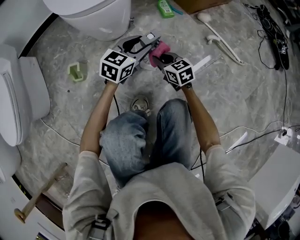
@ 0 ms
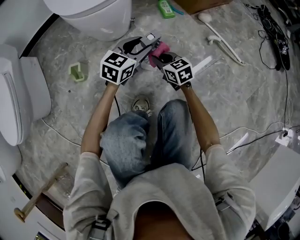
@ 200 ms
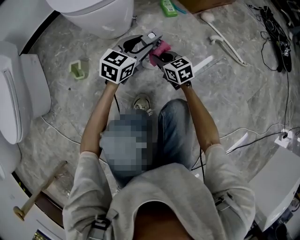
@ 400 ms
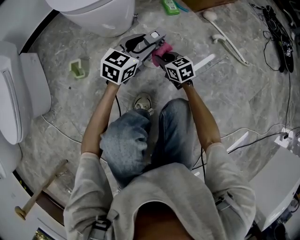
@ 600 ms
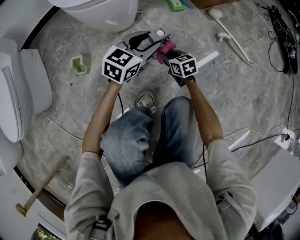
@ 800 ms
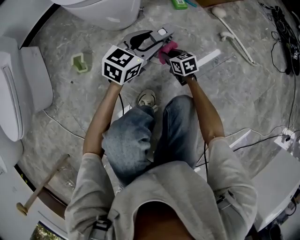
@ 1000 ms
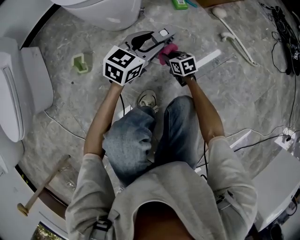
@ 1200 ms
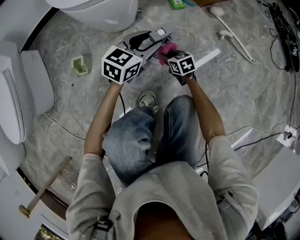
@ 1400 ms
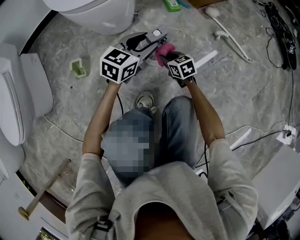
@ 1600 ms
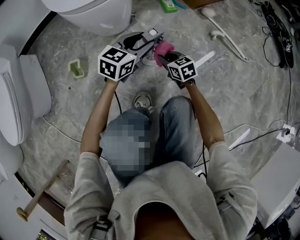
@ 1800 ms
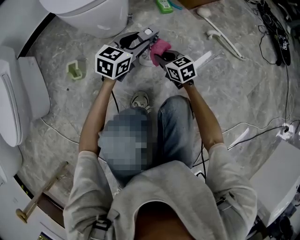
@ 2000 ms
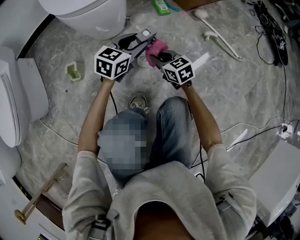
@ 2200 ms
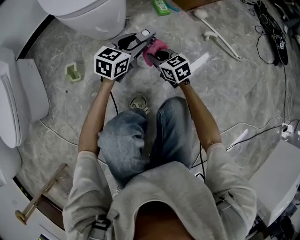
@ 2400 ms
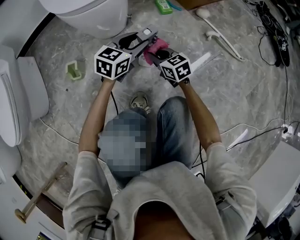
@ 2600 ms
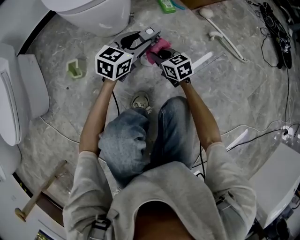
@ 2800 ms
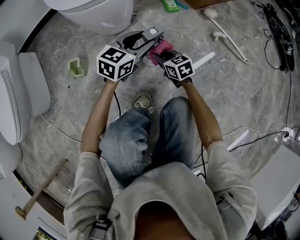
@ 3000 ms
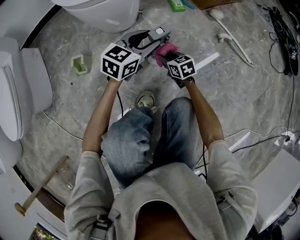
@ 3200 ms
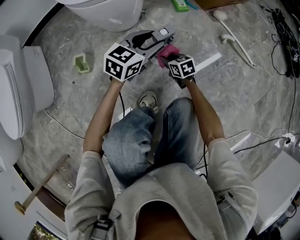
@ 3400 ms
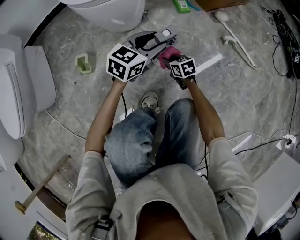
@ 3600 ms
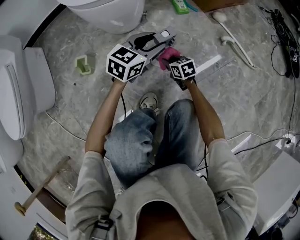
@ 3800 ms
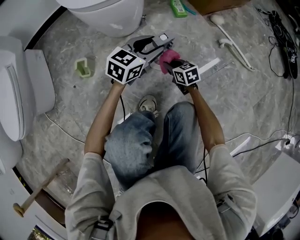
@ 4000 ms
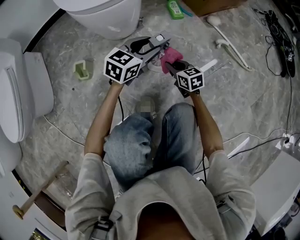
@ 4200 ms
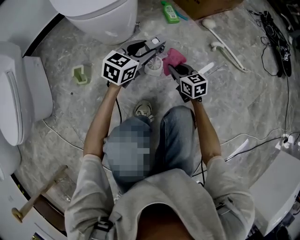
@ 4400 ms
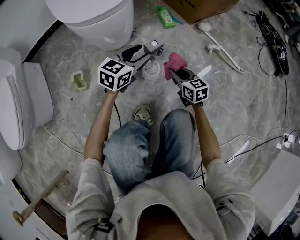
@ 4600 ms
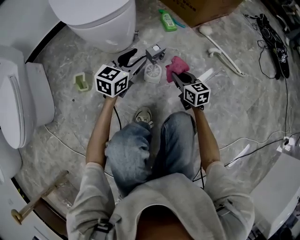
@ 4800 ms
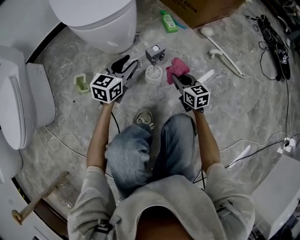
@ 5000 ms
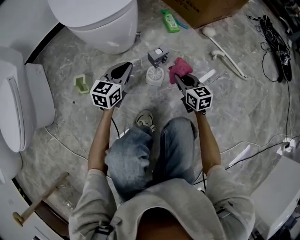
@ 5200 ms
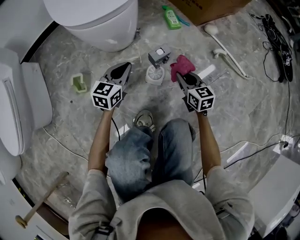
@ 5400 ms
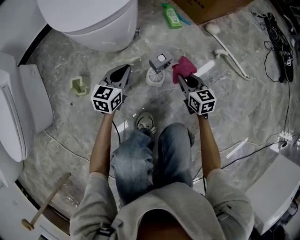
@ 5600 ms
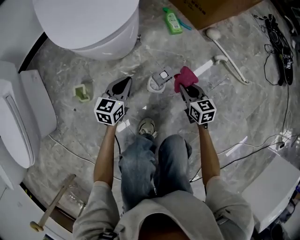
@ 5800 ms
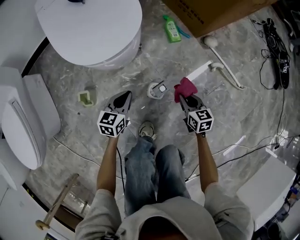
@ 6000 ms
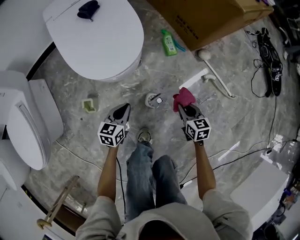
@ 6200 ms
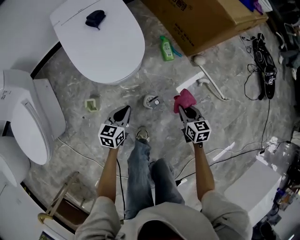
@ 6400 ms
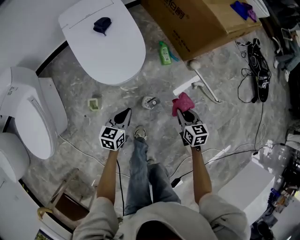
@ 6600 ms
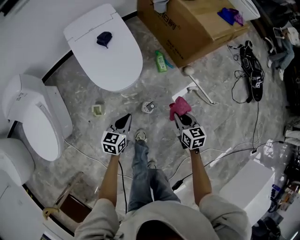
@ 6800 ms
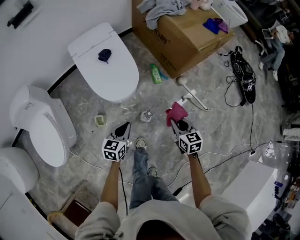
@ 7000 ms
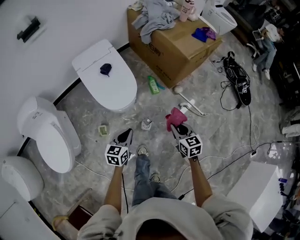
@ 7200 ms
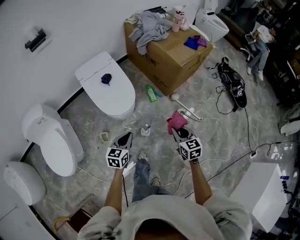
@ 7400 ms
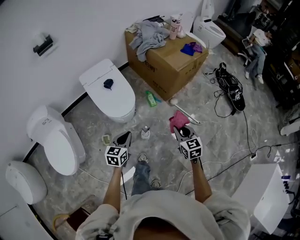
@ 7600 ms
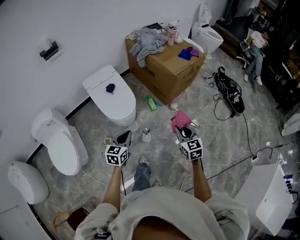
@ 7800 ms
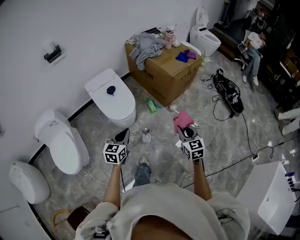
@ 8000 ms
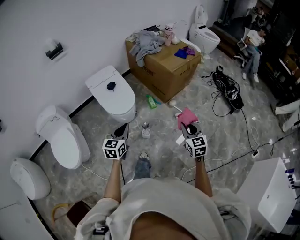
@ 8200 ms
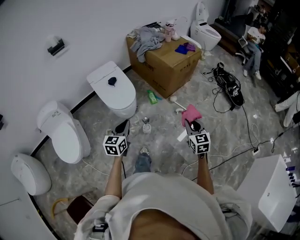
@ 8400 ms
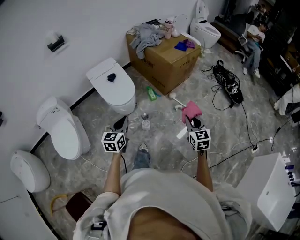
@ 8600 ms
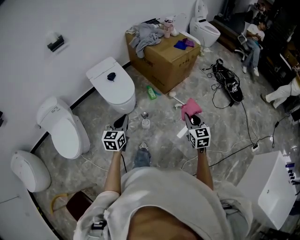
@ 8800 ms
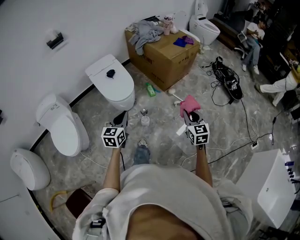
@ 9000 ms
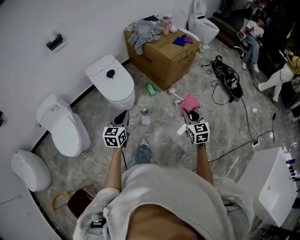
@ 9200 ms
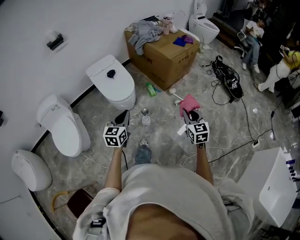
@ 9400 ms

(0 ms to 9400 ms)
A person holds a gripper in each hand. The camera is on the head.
0 ms - 1600 ms: The right gripper travels downward by about 10 cm.
1600 ms - 3200 ms: The right gripper goes upward and returns, about 10 cm each way.
3200 ms - 4800 ms: The right gripper travels to the right and upward by some 10 cm.
4800 ms - 6200 ms: The right gripper shifts about 10 cm upward, while the left gripper travels to the left by roughly 10 cm, reaches roughly 10 cm downward, then returns, turns by roughly 20 degrees, and closes.
6200 ms - 7800 ms: The two grippers go about 50 cm upward. The right gripper turns by some 30 degrees.
7800 ms - 9400 ms: The right gripper travels backward and to the right by some 15 cm, while the left gripper shifts about 10 cm backward and upward.

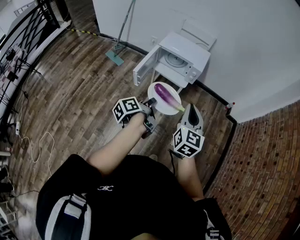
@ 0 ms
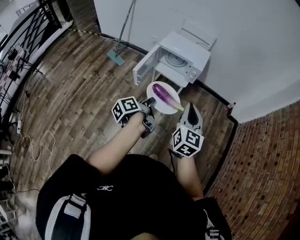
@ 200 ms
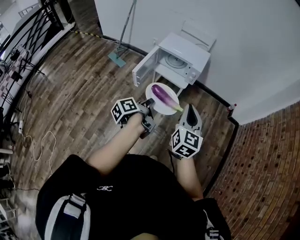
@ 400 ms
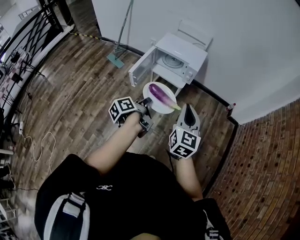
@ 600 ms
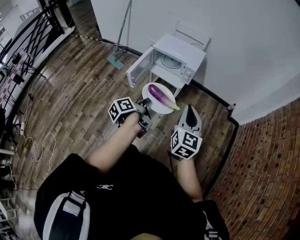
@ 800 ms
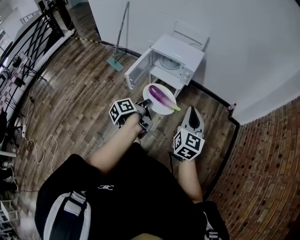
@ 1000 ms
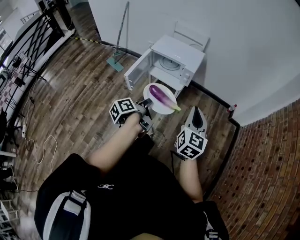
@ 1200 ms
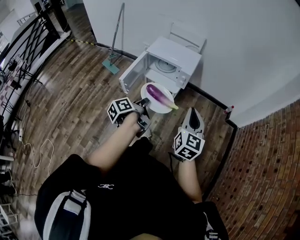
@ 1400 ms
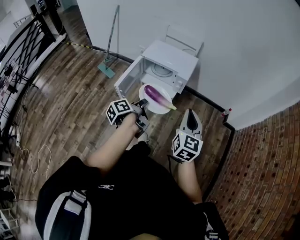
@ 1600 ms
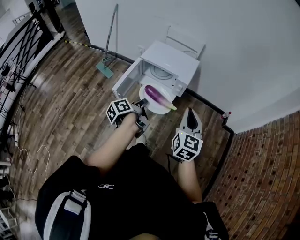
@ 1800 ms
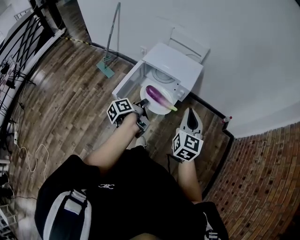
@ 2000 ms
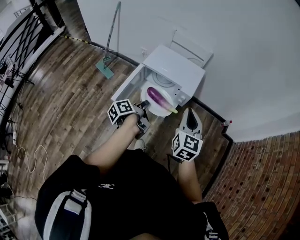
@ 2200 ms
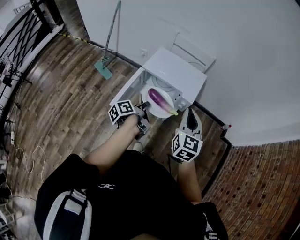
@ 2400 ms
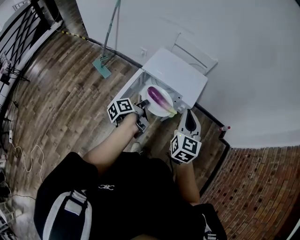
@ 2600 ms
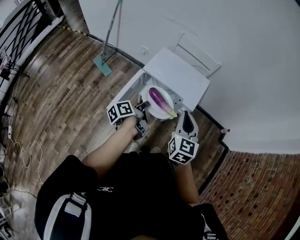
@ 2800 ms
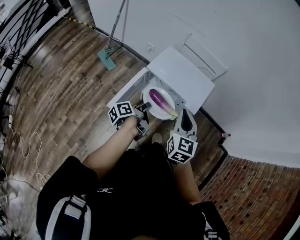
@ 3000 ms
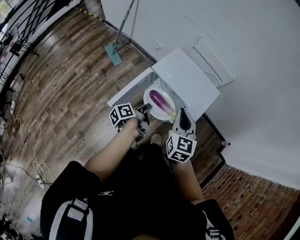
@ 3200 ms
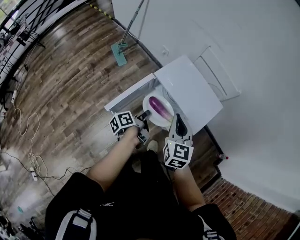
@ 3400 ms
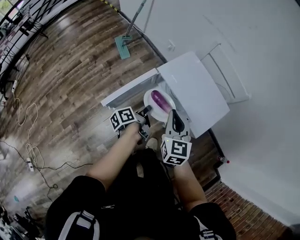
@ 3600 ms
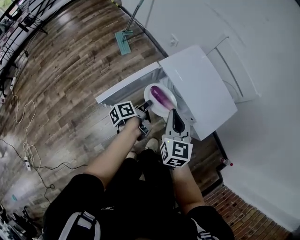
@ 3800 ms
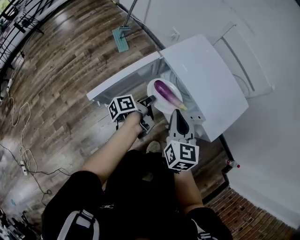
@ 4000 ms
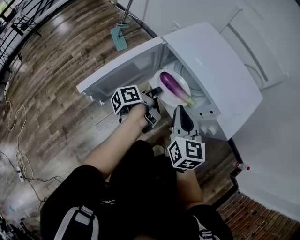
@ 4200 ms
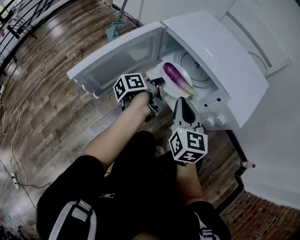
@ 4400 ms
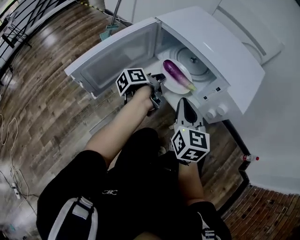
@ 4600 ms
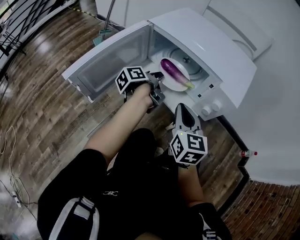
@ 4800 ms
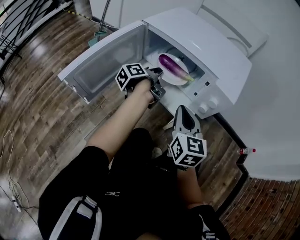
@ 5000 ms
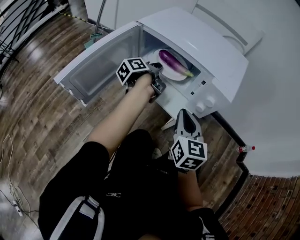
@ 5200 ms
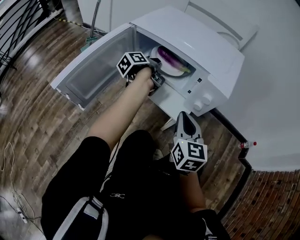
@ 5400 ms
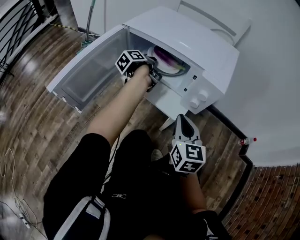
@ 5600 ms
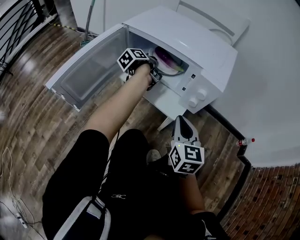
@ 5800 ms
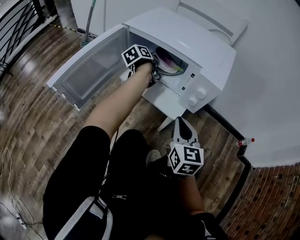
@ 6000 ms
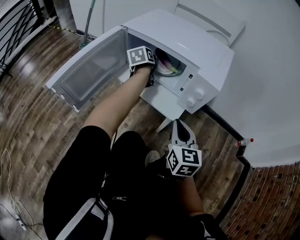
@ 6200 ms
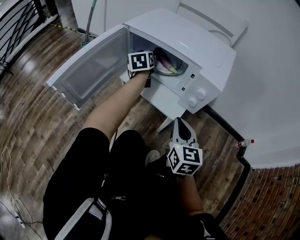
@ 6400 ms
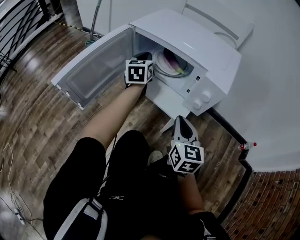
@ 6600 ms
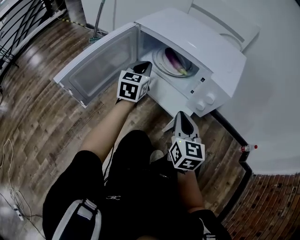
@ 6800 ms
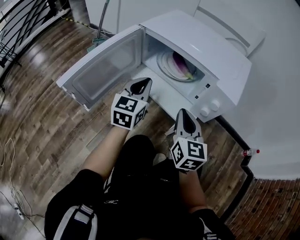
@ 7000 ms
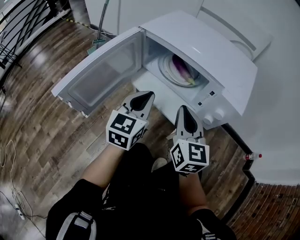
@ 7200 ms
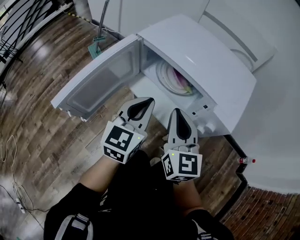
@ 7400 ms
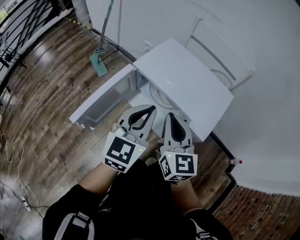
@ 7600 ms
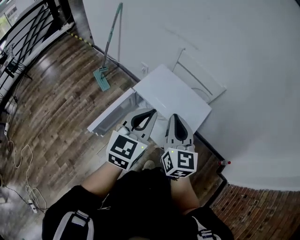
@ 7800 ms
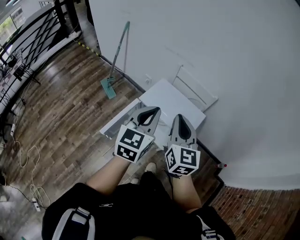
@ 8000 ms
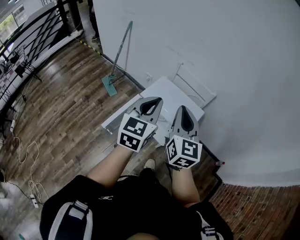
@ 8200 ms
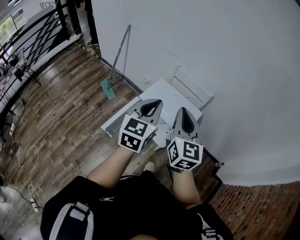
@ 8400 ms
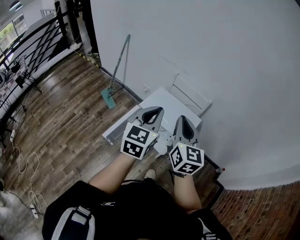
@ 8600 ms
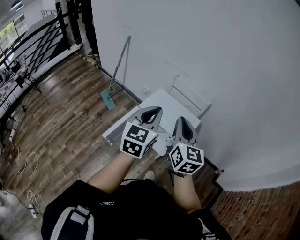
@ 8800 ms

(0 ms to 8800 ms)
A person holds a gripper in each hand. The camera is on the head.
0 ms - 1400 ms: The right gripper travels to the right and forward by approximately 15 cm. Meanwhile the left gripper goes approximately 10 cm forward and to the right.
1400 ms - 3000 ms: The left gripper goes about 30 cm forward, while the right gripper is displaced forward and to the left by approximately 35 cm.
3000 ms - 4400 ms: Both grippers move downward, some 35 cm. The right gripper changes its angle by about 20 degrees.
4400 ms - 5800 ms: The right gripper heads to the right, backward and downward, covering roughly 15 cm, while the left gripper goes approximately 15 cm forward and to the right.
5800 ms - 7400 ms: The left gripper heads backward and upward, covering roughly 20 cm, rotates around the line of its fingers by approximately 70 degrees, clockwise from behind, and opens and closes again. The right gripper heads upward, to the left and forward, covering roughly 15 cm.
7400 ms - 8800 ms: The grippers both shift upward by approximately 50 cm.

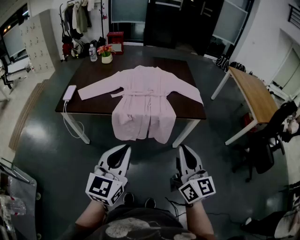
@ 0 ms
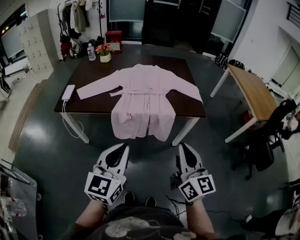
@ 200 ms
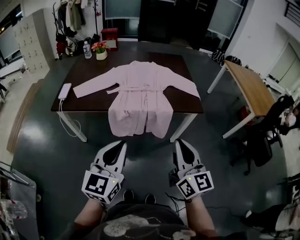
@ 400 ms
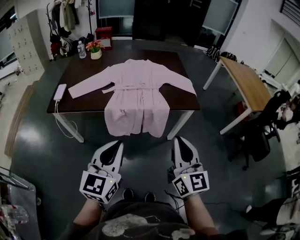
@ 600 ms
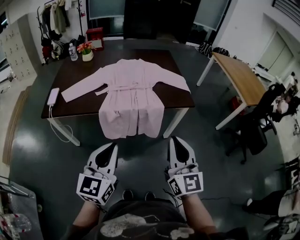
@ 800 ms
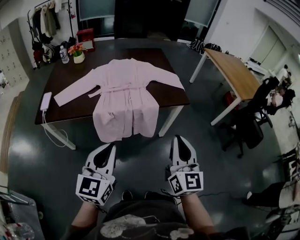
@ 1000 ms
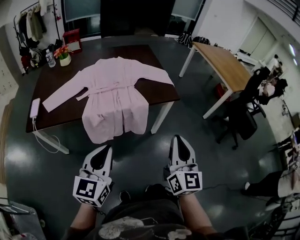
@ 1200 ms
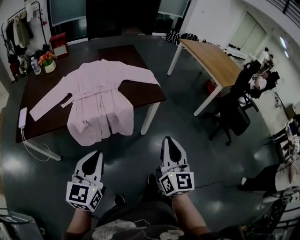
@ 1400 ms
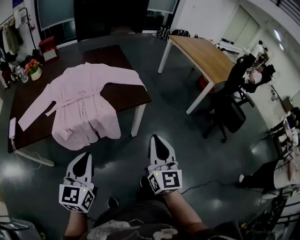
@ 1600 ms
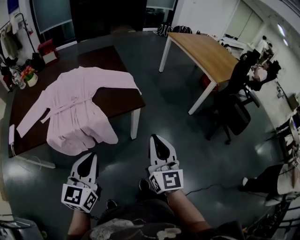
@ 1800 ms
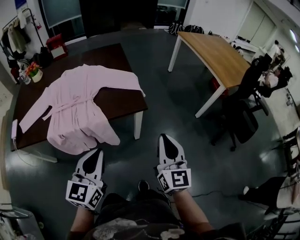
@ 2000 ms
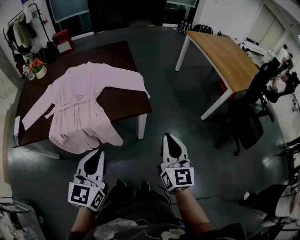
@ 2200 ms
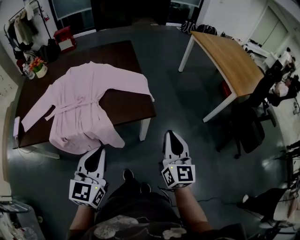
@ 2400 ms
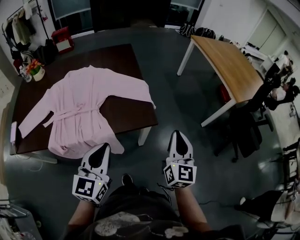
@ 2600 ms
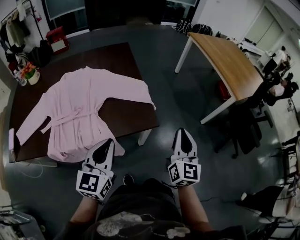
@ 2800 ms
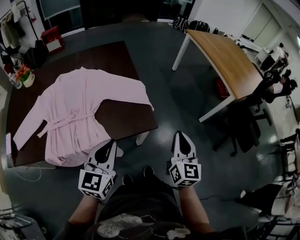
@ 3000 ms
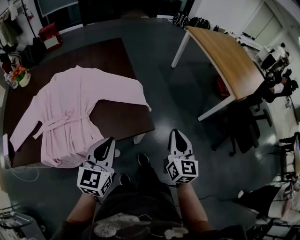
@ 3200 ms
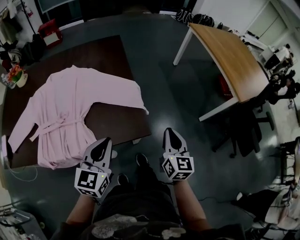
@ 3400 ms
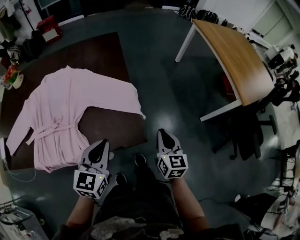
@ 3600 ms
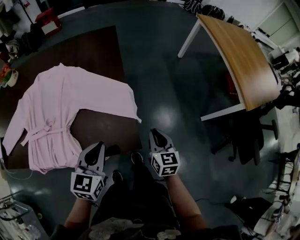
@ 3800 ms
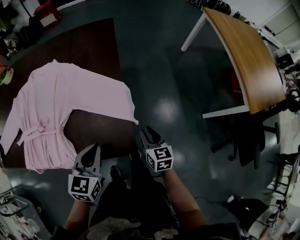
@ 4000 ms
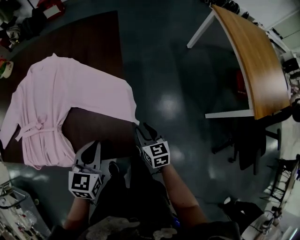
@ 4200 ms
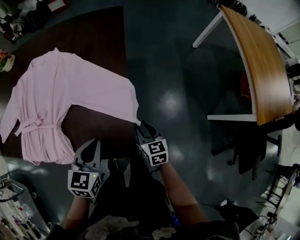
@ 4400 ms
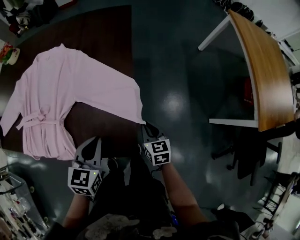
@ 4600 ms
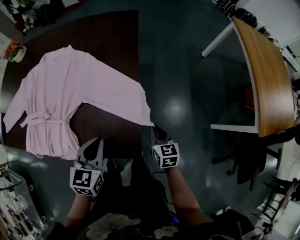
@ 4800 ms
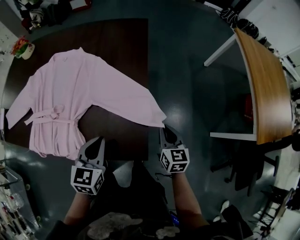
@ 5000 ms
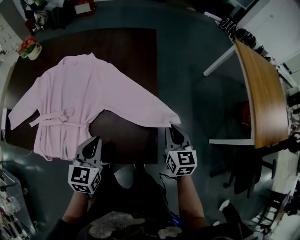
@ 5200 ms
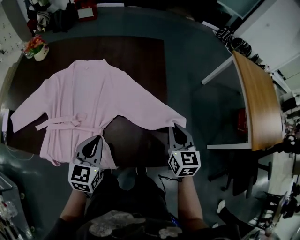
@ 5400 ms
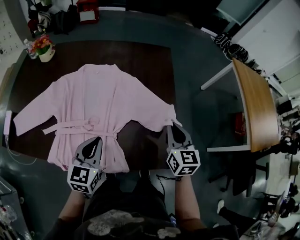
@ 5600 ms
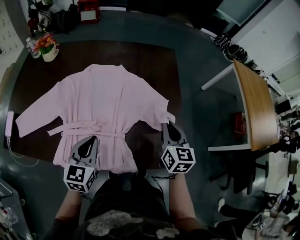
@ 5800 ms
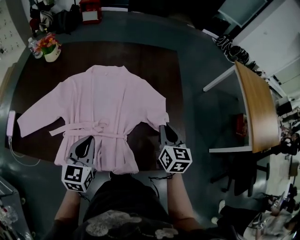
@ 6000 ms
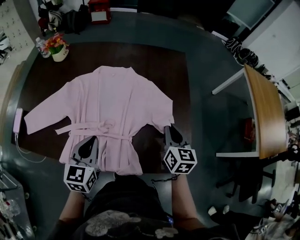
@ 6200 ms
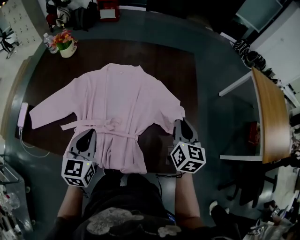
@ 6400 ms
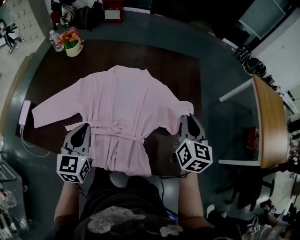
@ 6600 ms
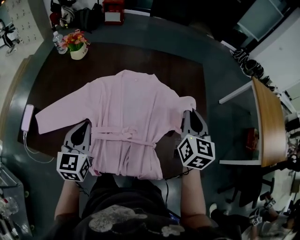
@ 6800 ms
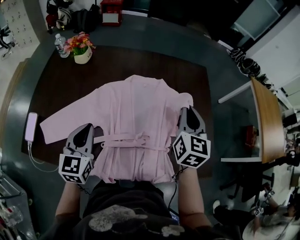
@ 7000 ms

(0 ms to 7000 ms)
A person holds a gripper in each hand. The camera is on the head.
0 ms - 1400 ms: The left gripper heads forward and downward, covering some 10 cm, while the right gripper goes some 10 cm to the right, and swivels roughly 30 degrees.
1400 ms - 2800 ms: The grippers both shift forward and to the right by roughly 35 cm.
2800 ms - 4200 ms: The right gripper is displaced downward by some 30 cm, angles its fingers downward, by about 30 degrees, and opens its fingers. The left gripper changes place by approximately 25 cm, and turns by roughly 30 degrees.
4200 ms - 5600 ms: The left gripper shifts about 25 cm to the left, while the right gripper moves upward and to the left, some 25 cm, and closes up.
5600 ms - 7000 ms: Both grippers move to the left, roughly 25 cm.